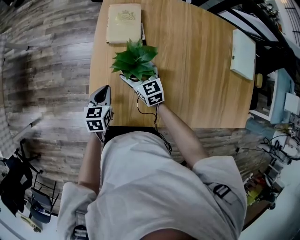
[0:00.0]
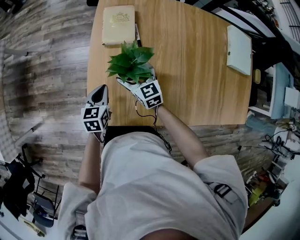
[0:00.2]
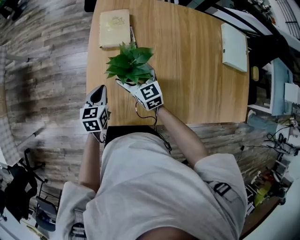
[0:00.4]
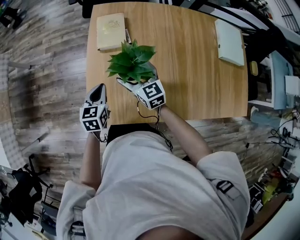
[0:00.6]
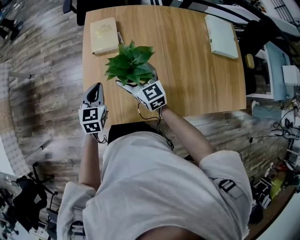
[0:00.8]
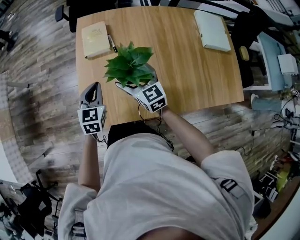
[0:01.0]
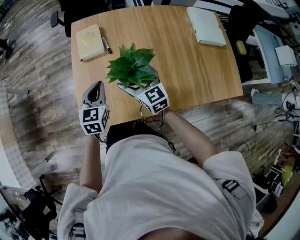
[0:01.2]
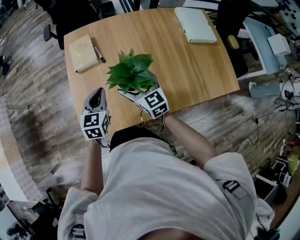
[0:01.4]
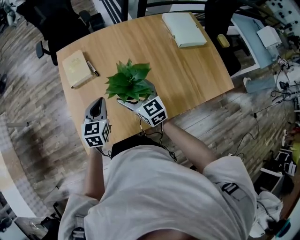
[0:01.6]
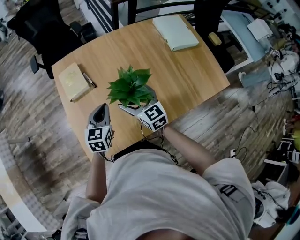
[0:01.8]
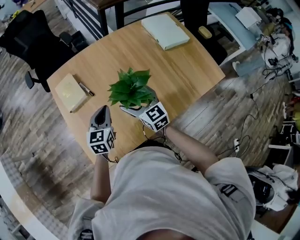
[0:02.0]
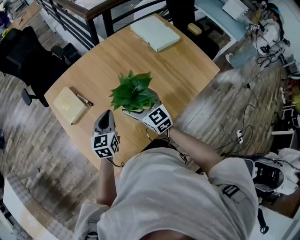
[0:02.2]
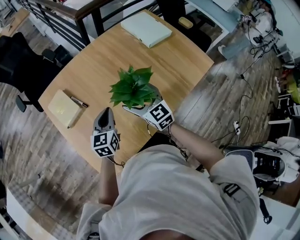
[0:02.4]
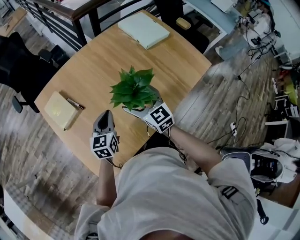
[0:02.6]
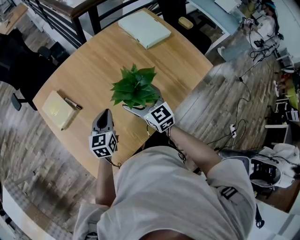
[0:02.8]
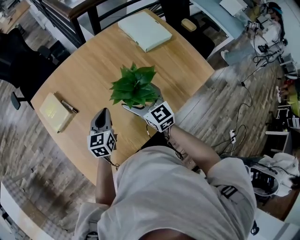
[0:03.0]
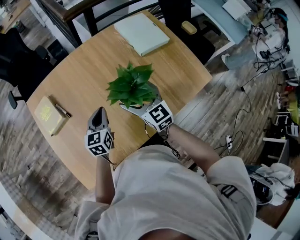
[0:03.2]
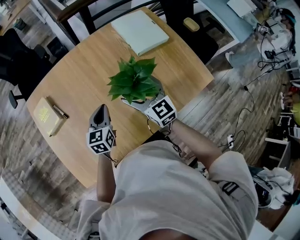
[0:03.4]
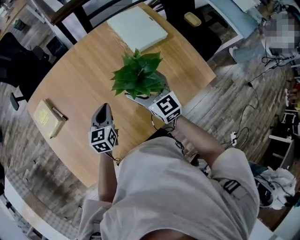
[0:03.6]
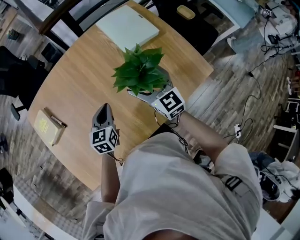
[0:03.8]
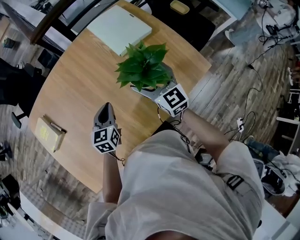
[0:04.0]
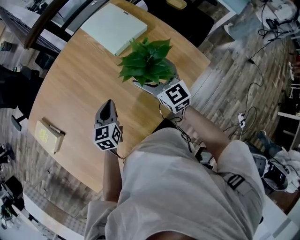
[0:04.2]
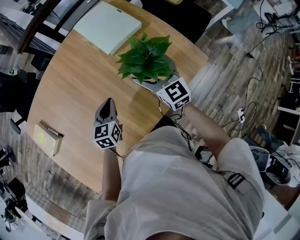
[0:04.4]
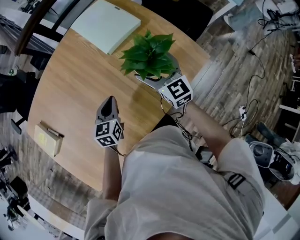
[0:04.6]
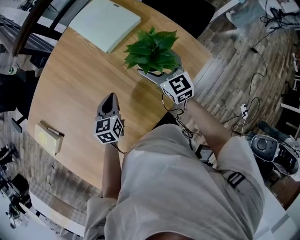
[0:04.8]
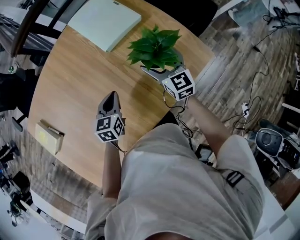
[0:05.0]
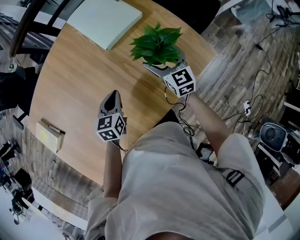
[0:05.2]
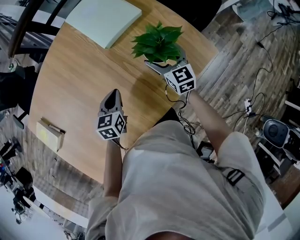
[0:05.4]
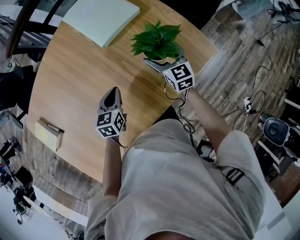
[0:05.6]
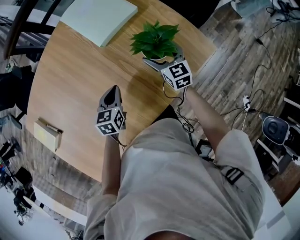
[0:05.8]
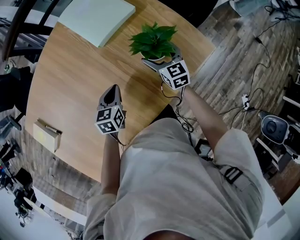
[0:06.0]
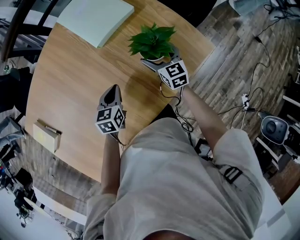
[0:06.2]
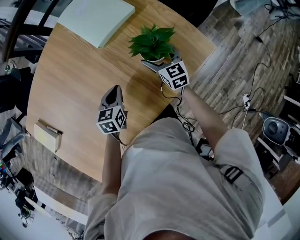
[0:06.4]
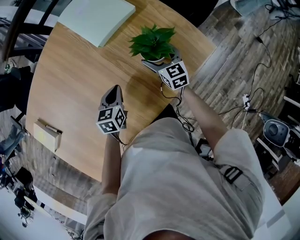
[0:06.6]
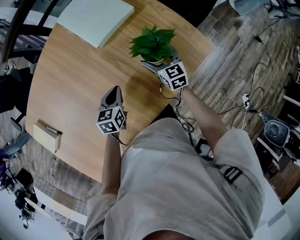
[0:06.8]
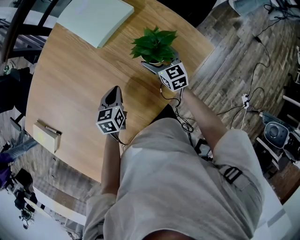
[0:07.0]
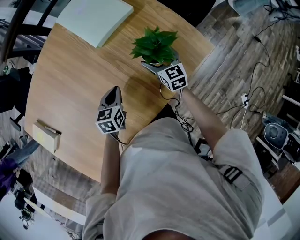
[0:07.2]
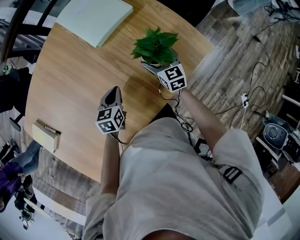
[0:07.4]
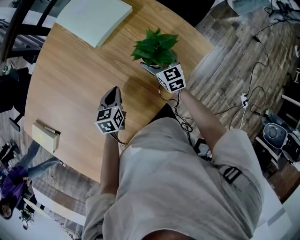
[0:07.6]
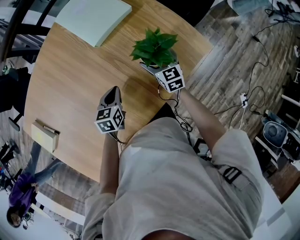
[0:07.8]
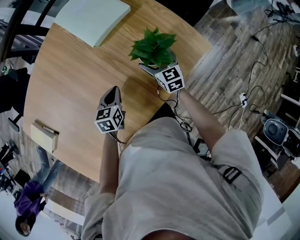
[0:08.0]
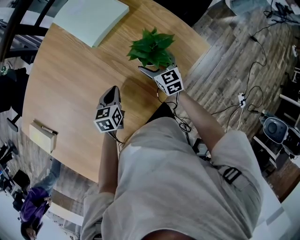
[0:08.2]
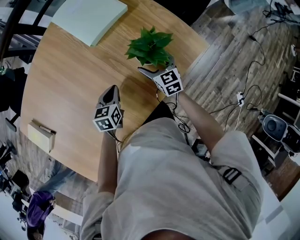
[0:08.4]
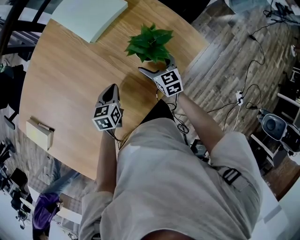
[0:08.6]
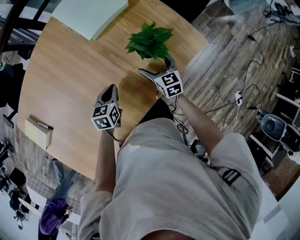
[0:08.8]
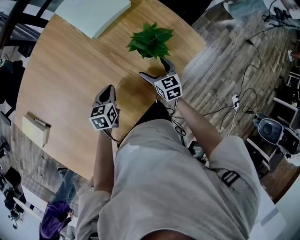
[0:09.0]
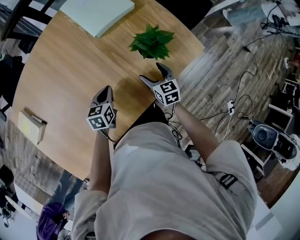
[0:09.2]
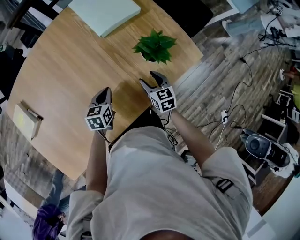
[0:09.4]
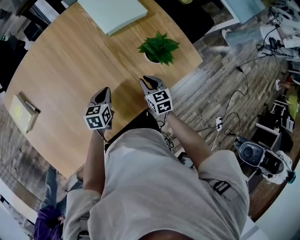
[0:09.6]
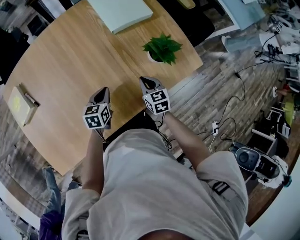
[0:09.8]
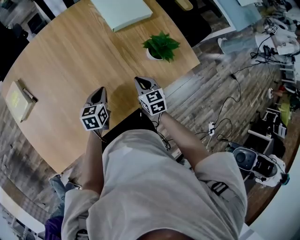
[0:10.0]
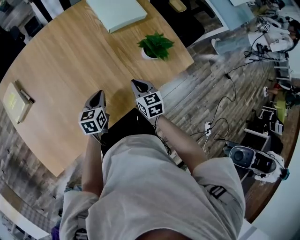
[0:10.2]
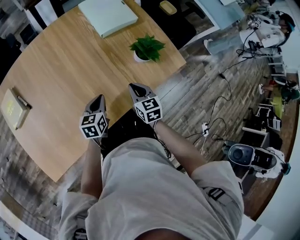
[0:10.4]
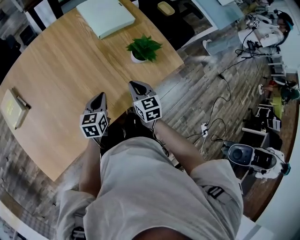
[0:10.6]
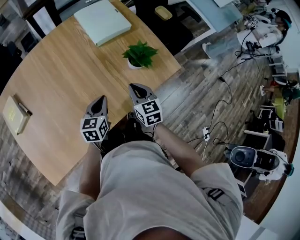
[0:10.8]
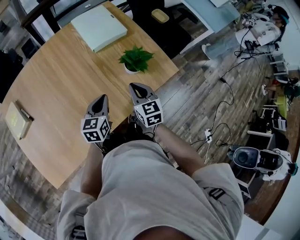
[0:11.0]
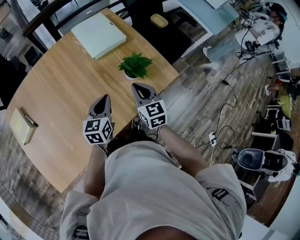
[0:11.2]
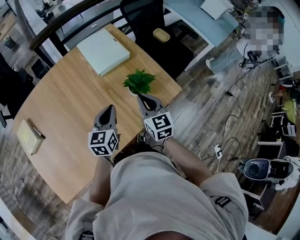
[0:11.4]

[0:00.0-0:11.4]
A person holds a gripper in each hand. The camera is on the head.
0:00.0 to 0:01.4: The left gripper moves upward and to the right, some 20 cm, and swivels roughly 30 degrees, while the right gripper shifts some 25 cm upward, to the right and backward.
0:01.4 to 0:02.8: The left gripper shifts by about 15 cm, and rotates approximately 30 degrees, while the right gripper moves some 15 cm, and turns by about 20 degrees.
0:02.8 to 0:04.2: The two grippers go some 30 cm to the right and forward.
0:04.2 to 0:05.6: The left gripper goes roughly 10 cm downward and to the right. The right gripper goes roughly 15 cm downward and to the right.
0:05.6 to 0:07.2: The right gripper moves downward, roughly 5 cm.
0:07.2 to 0:08.6: The grippers stay close to where they were, moving slightly.
0:08.6 to 0:10.0: The two grippers go about 10 cm backward and to the left. The right gripper closes up.
0:10.0 to 0:11.4: Both grippers move upward and to the right, some 20 cm. The left gripper swivels roughly 20 degrees, while the right gripper rotates about 20 degrees.

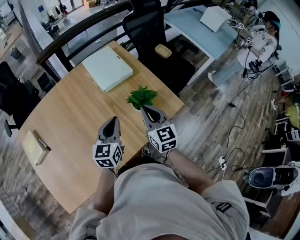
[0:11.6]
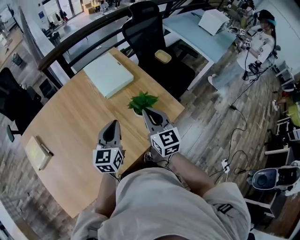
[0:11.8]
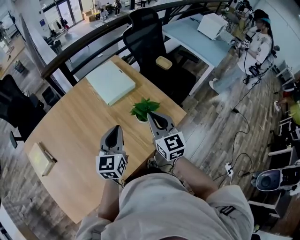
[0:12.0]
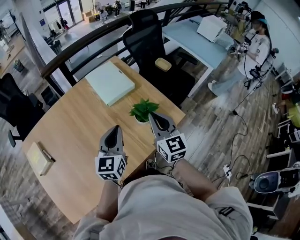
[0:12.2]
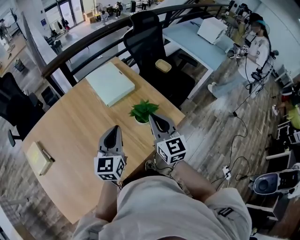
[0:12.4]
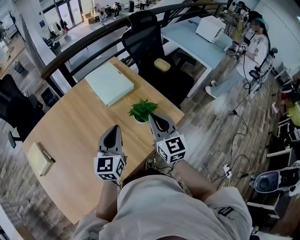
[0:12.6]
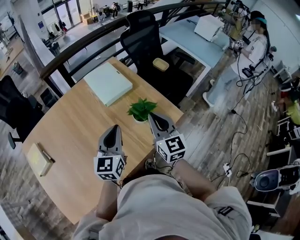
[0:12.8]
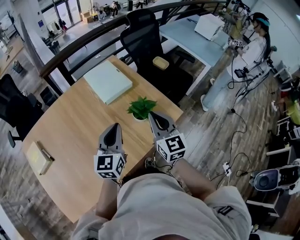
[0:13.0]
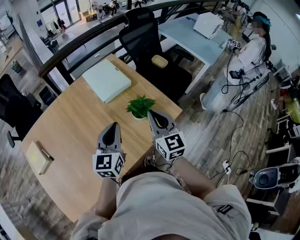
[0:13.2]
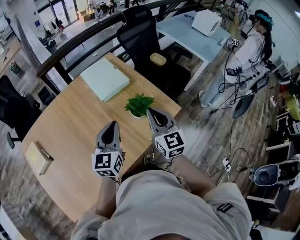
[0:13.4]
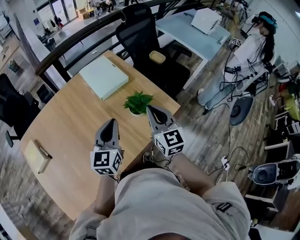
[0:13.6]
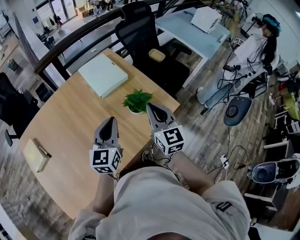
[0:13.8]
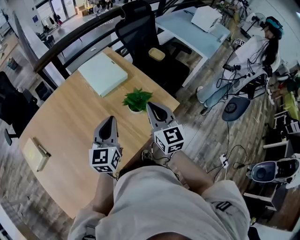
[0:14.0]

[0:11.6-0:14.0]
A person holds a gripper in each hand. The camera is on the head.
0:11.6 to 0:12.8: Both grippers move upward, approximately 5 cm.
0:12.8 to 0:14.0: The two grippers keep their place.

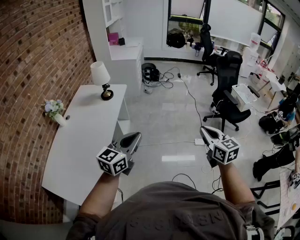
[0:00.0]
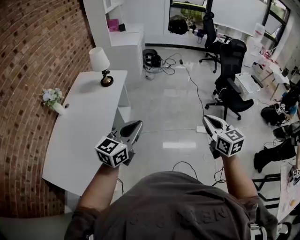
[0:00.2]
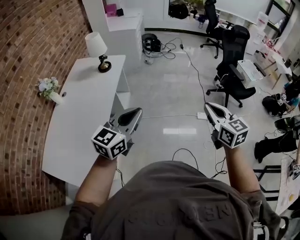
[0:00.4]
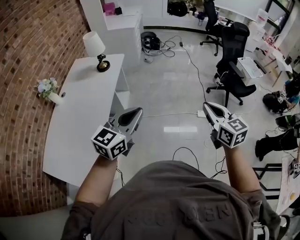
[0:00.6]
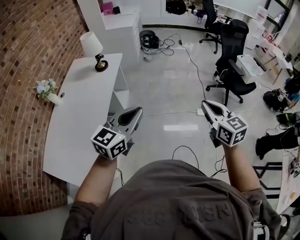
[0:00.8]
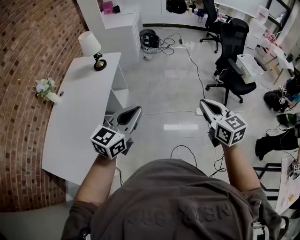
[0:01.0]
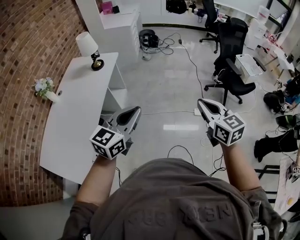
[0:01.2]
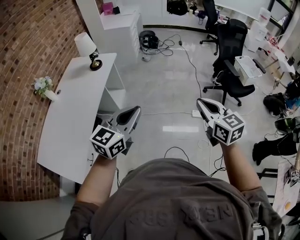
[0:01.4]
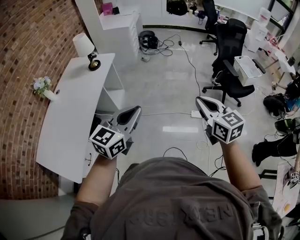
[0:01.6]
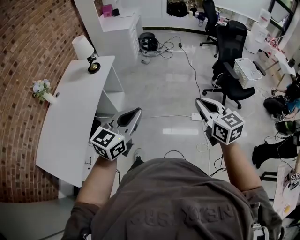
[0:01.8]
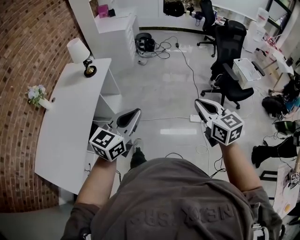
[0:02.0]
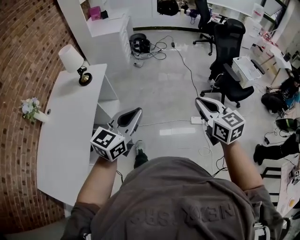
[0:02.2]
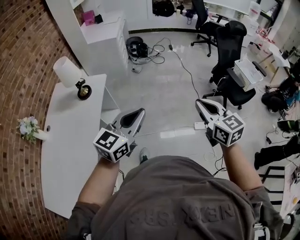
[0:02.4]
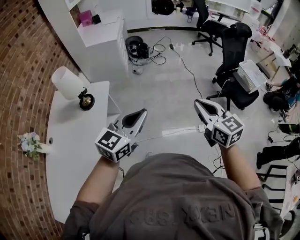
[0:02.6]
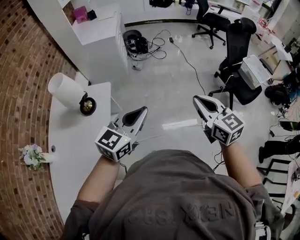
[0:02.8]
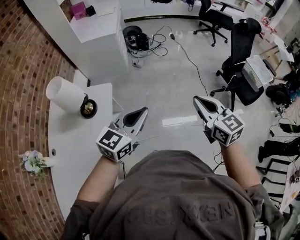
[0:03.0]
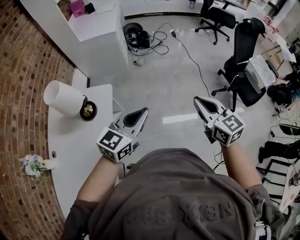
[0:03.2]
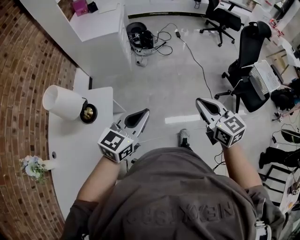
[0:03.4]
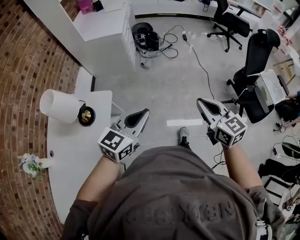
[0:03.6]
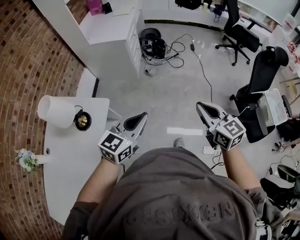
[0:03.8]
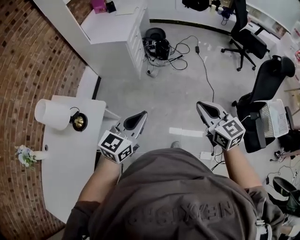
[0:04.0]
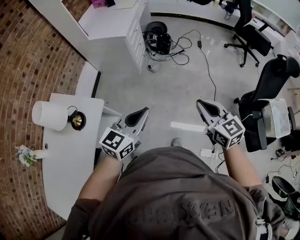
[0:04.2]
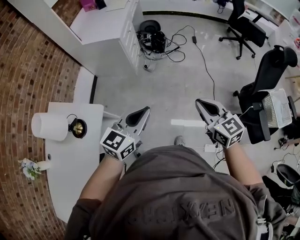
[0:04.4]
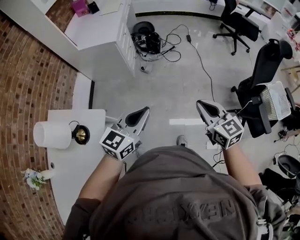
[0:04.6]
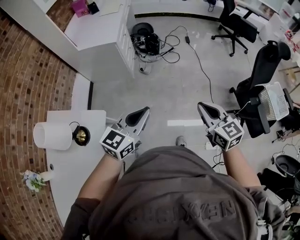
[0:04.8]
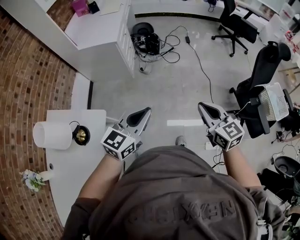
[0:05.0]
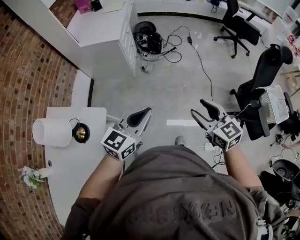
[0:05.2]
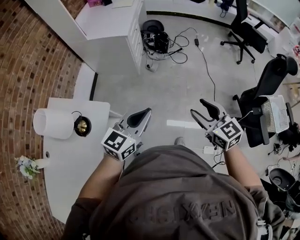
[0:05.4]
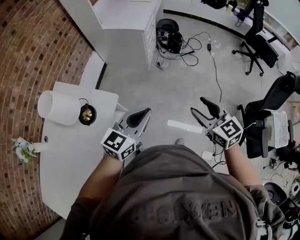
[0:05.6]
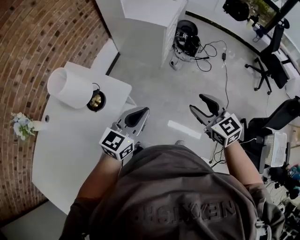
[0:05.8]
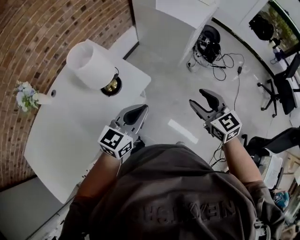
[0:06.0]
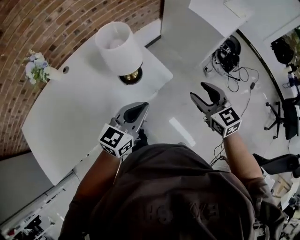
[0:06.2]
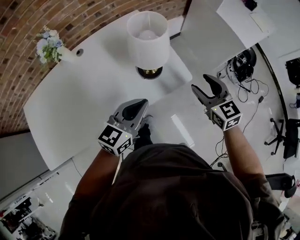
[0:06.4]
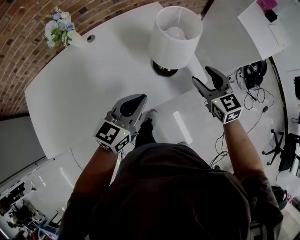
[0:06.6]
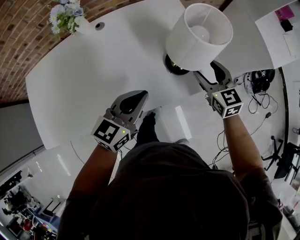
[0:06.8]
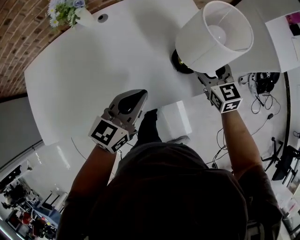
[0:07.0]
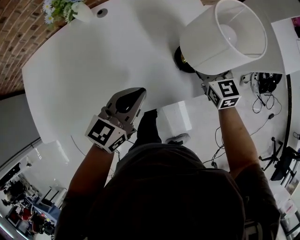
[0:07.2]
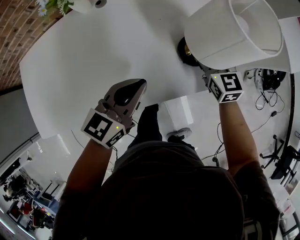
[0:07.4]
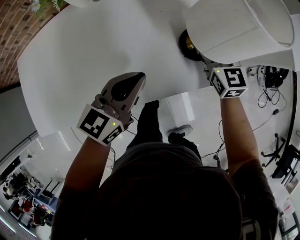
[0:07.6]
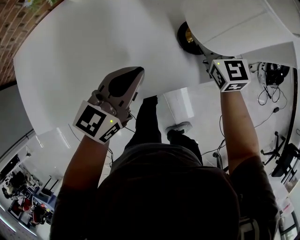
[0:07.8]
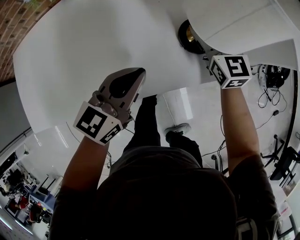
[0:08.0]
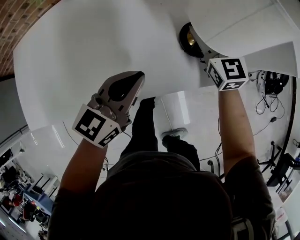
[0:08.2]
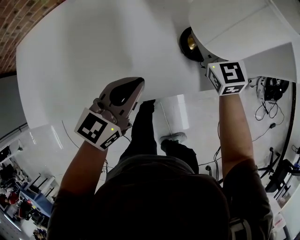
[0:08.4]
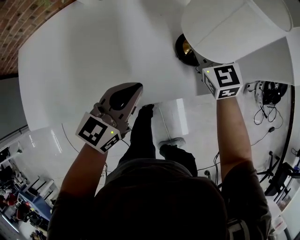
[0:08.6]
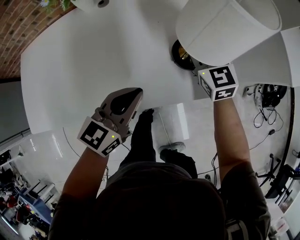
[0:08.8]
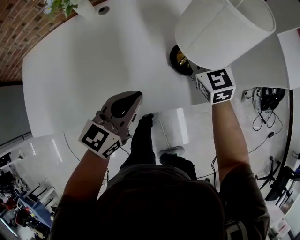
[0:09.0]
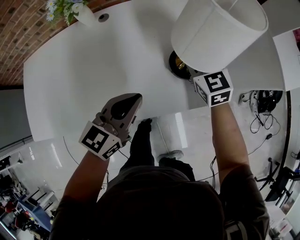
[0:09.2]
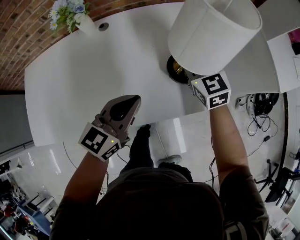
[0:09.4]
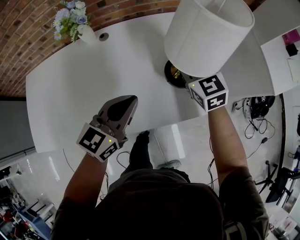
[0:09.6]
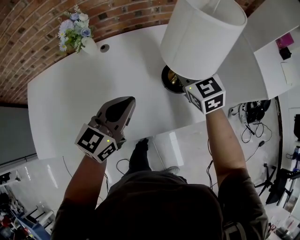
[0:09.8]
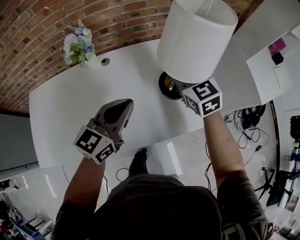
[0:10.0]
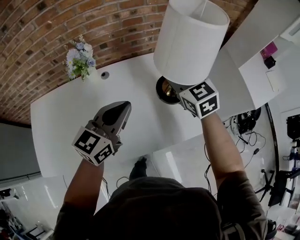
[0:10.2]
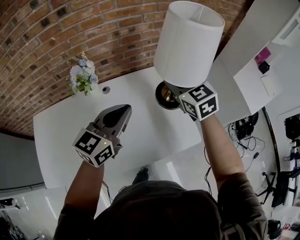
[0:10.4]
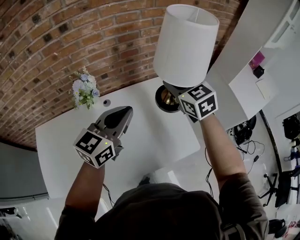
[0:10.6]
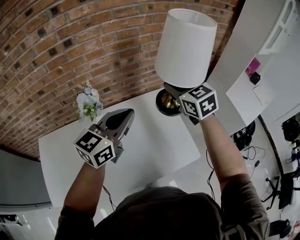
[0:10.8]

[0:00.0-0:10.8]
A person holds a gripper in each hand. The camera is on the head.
0:00.0 to 0:01.6: The left gripper travels to the right by some 15 cm. Meanwhile the right gripper moves to the right, roughly 10 cm.
0:01.6 to 0:03.0: The two grippers travel together, forward and to the left, approximately 50 cm.
0:03.0 to 0:04.6: Both grippers travel together forward, some 30 cm.
0:04.6 to 0:06.2: The right gripper shifts by some 40 cm, changes its angle by about 50 degrees, and opens up, while the left gripper ends up some 35 cm from where it was, and swivels some 50 degrees.
0:06.2 to 0:07.8: The left gripper heads to the left and downward, covering approximately 25 cm, and changes its angle by some 20 degrees; the right gripper heads to the left, forward and downward, covering some 40 cm.
0:07.8 to 0:09.2: The right gripper closes its fingers.
0:09.2 to 0:10.8: The right gripper goes approximately 35 cm upward; the left gripper heads upward and forward, covering approximately 35 cm.
